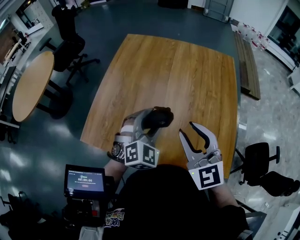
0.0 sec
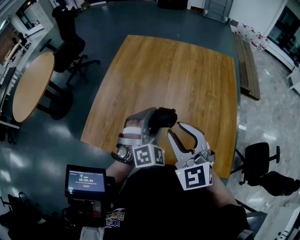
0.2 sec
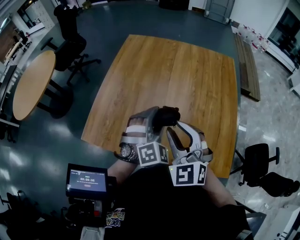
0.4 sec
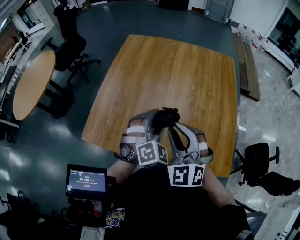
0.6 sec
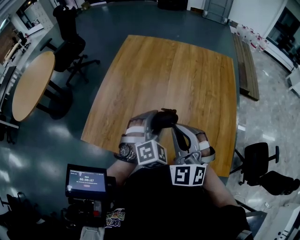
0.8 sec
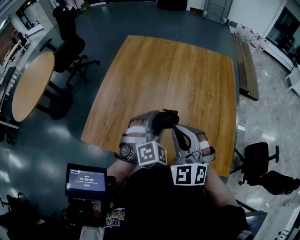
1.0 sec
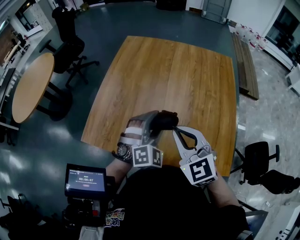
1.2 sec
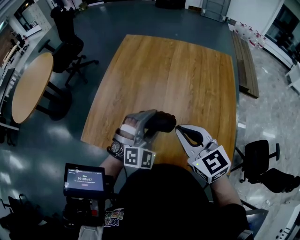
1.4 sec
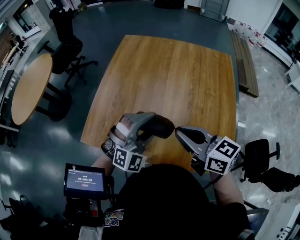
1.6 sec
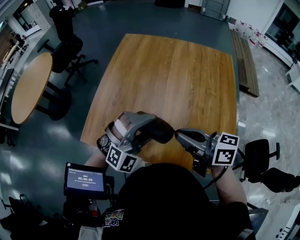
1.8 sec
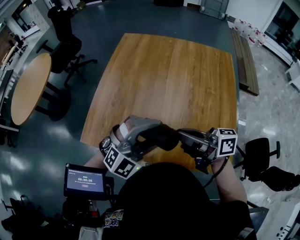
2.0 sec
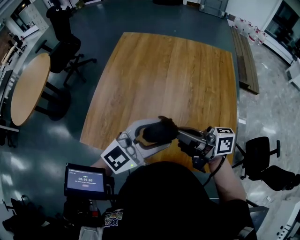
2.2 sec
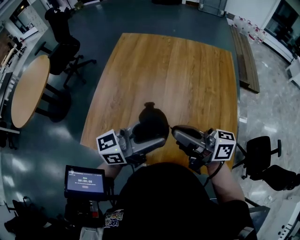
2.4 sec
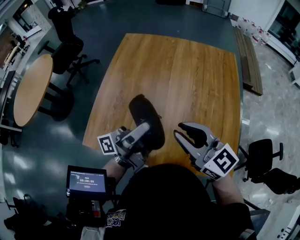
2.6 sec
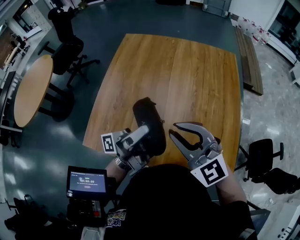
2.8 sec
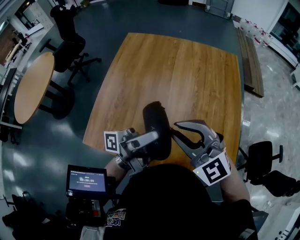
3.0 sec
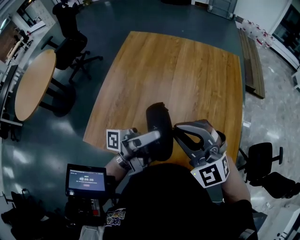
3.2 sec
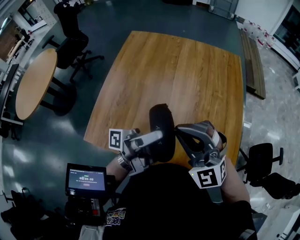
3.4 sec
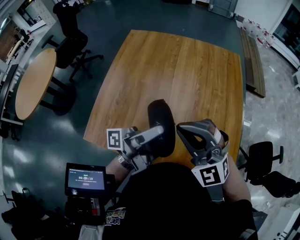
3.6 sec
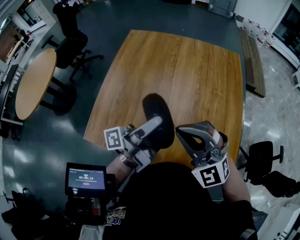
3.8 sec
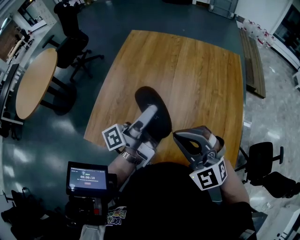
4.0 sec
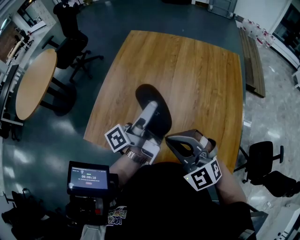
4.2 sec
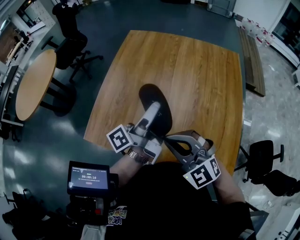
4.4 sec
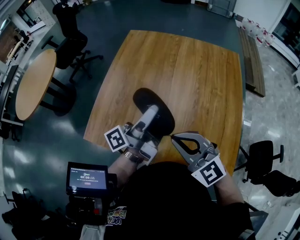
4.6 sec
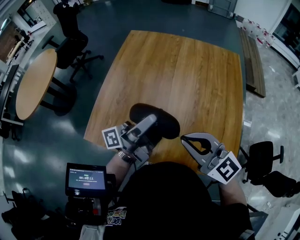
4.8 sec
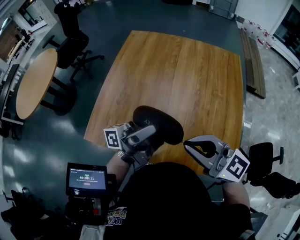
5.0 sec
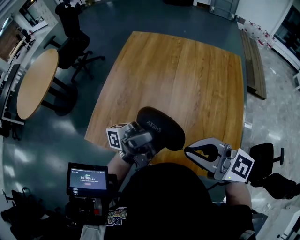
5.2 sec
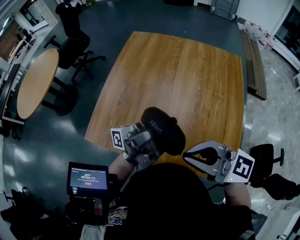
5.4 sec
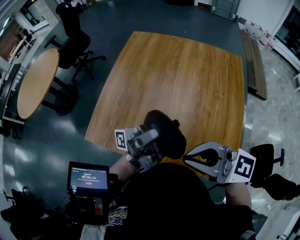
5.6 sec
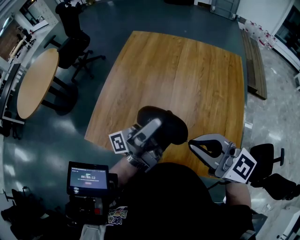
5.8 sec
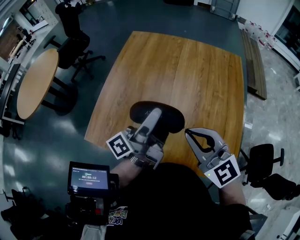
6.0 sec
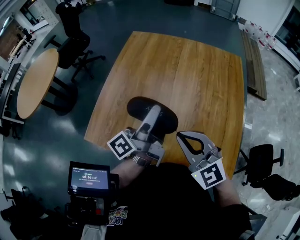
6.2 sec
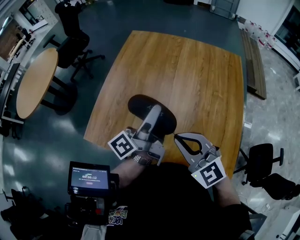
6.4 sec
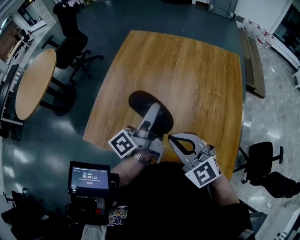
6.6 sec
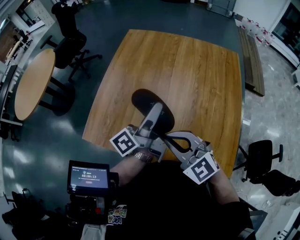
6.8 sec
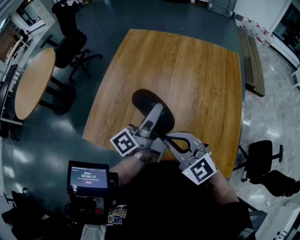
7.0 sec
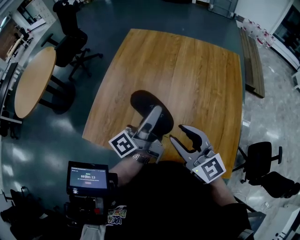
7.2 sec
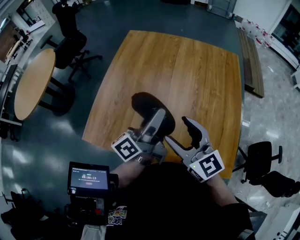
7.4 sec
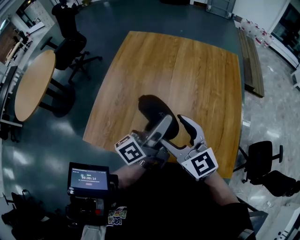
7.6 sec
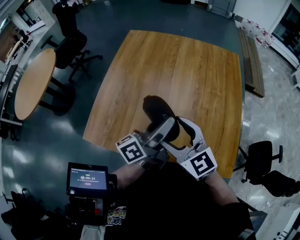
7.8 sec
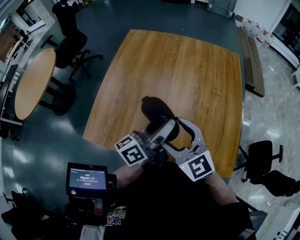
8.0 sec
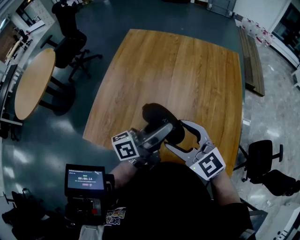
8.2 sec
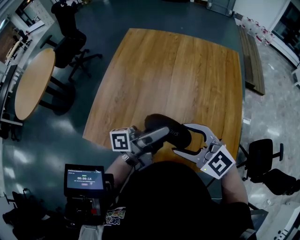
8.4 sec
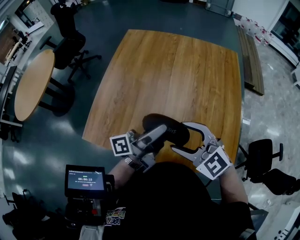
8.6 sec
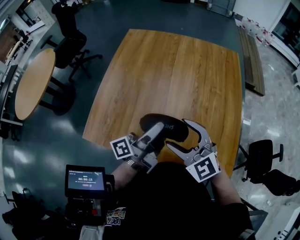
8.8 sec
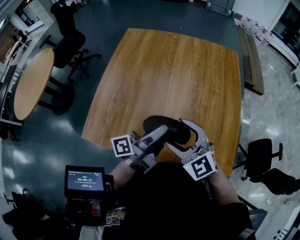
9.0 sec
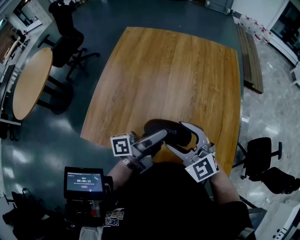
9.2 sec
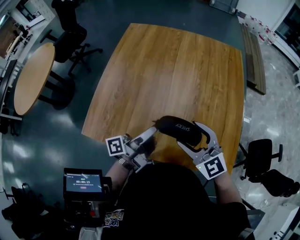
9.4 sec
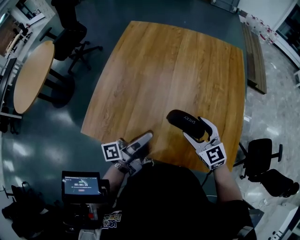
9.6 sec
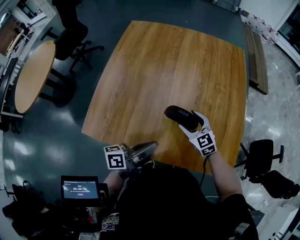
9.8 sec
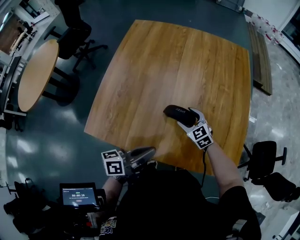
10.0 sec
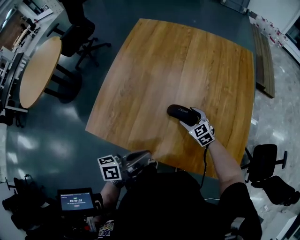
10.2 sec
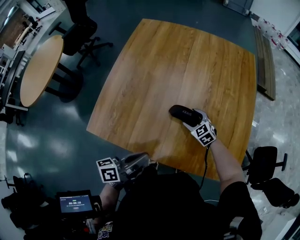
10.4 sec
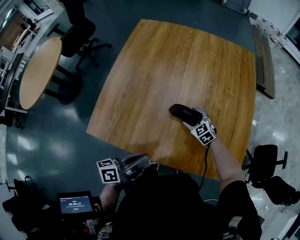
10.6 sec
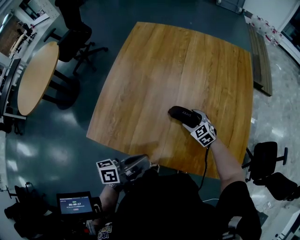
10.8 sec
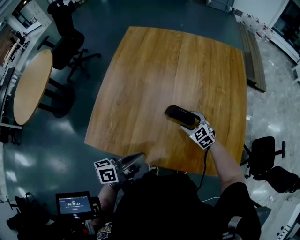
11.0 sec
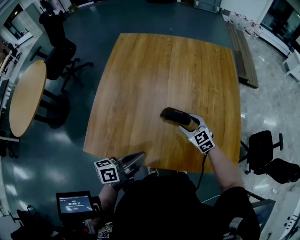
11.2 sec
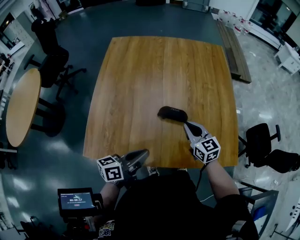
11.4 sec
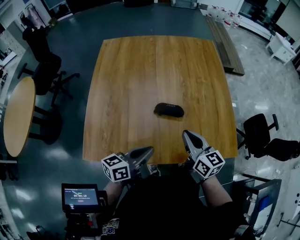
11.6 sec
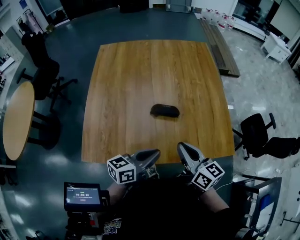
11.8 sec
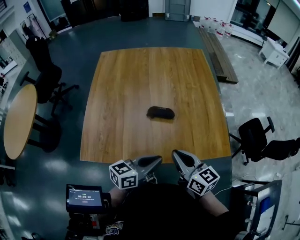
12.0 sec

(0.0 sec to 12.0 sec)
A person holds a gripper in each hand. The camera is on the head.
0.0 sec - 1.6 sec: The left gripper turns by approximately 30 degrees. The right gripper swivels some 50 degrees, and closes.
1.6 sec - 3.0 sec: The left gripper goes about 10 cm upward, and twists approximately 130 degrees counterclockwise, seen from behind; the right gripper rolls counterclockwise, seen from behind, by roughly 60 degrees.
3.0 sec - 4.4 sec: The left gripper goes roughly 5 cm forward, and turns by about 40 degrees. Meanwhile the right gripper travels downward by roughly 5 cm.
4.4 sec - 6.0 sec: The right gripper shifts by some 10 cm, and rotates roughly 20 degrees.
6.0 sec - 7.6 sec: The right gripper moves roughly 5 cm, and opens.
7.6 sec - 9.0 sec: The right gripper shifts by about 5 cm, and turns by some 20 degrees. The left gripper travels downward by some 5 cm, and swivels some 20 degrees.
9.0 sec - 10.4 sec: The left gripper goes approximately 15 cm backward, to the left and downward, turns by roughly 30 degrees, and closes its fingers. Meanwhile the right gripper shifts about 30 cm downward and forward, and changes its angle by roughly 30 degrees.
10.4 sec - 12.0 sec: The right gripper heads upward and backward, covering roughly 30 cm, tips its fingers upward by approximately 30 degrees, and closes. Meanwhile the left gripper travels to the right by about 5 cm, and rotates some 40 degrees.

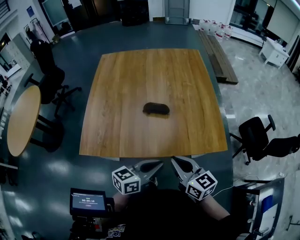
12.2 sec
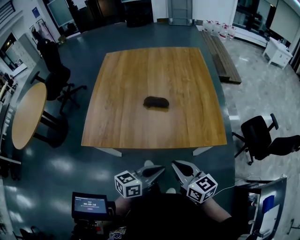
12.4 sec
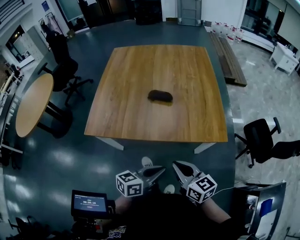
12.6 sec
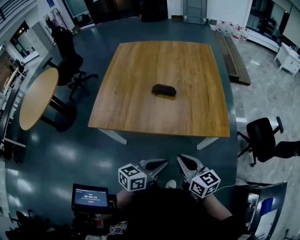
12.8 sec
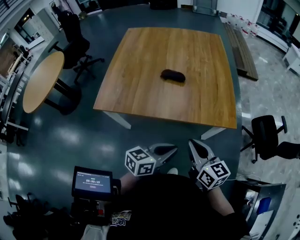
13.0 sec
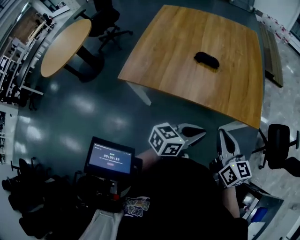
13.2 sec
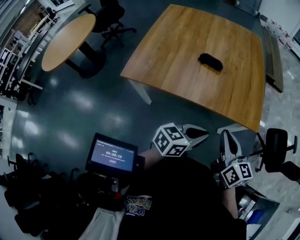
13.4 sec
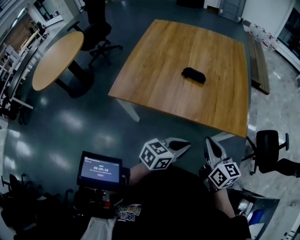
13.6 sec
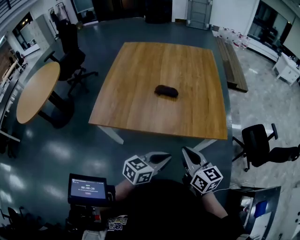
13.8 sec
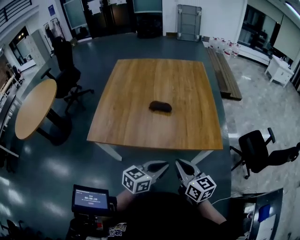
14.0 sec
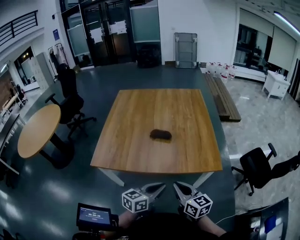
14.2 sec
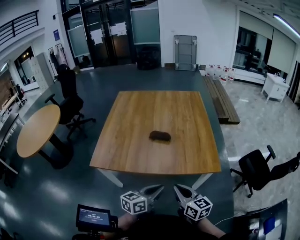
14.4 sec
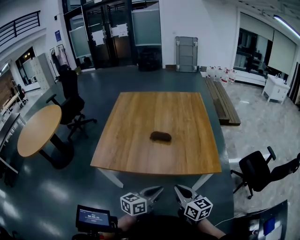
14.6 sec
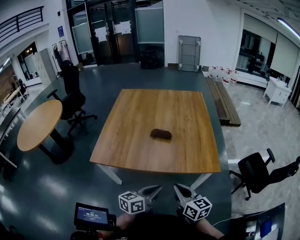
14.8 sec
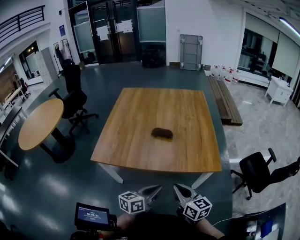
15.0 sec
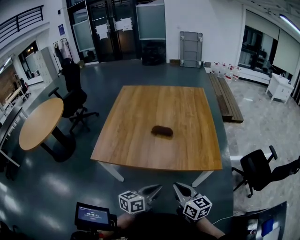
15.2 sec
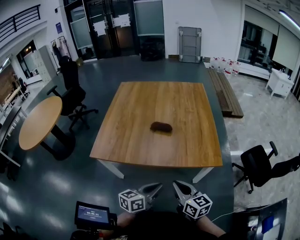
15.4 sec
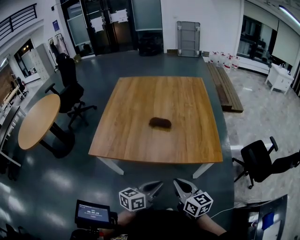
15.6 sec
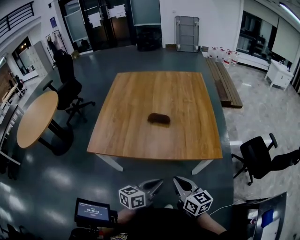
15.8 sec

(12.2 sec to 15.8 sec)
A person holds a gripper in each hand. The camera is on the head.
12.2 sec - 14.0 sec: The two grippers go about 10 cm backward and to the right.
14.0 sec - 15.8 sec: The grippers stay close to where they were, moving slightly.

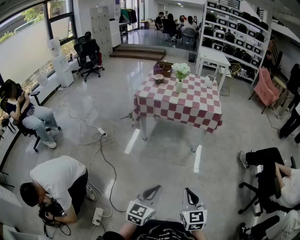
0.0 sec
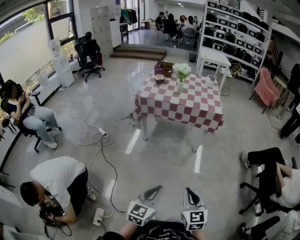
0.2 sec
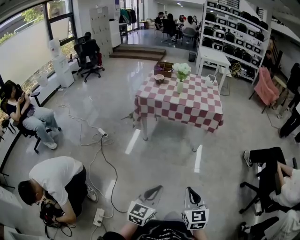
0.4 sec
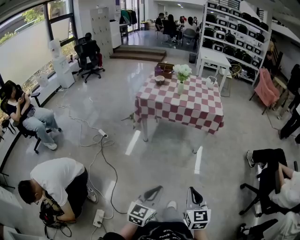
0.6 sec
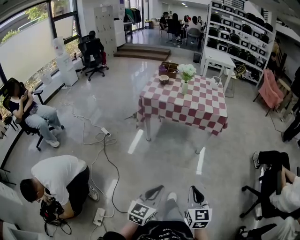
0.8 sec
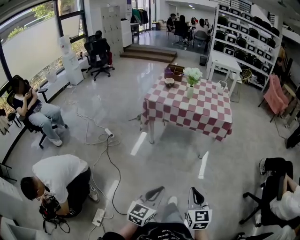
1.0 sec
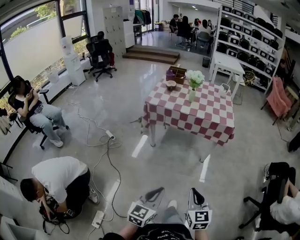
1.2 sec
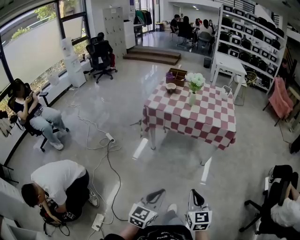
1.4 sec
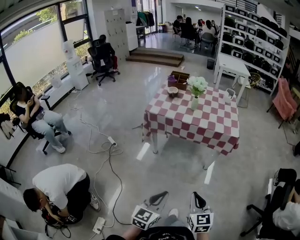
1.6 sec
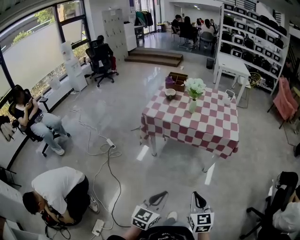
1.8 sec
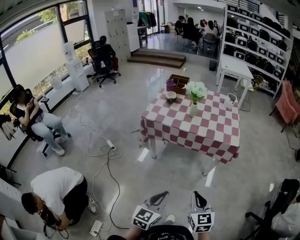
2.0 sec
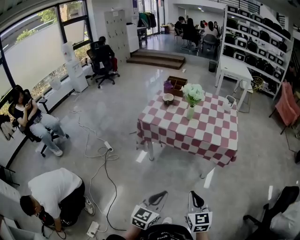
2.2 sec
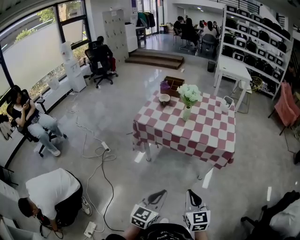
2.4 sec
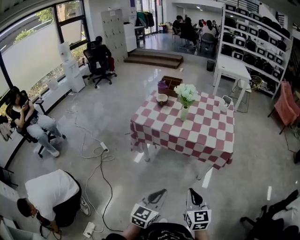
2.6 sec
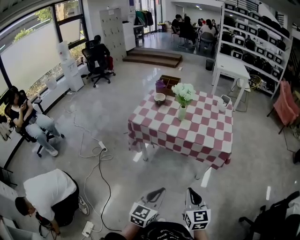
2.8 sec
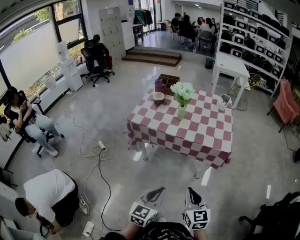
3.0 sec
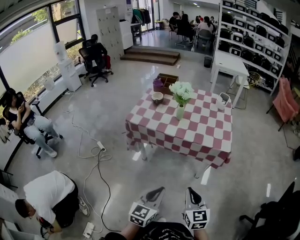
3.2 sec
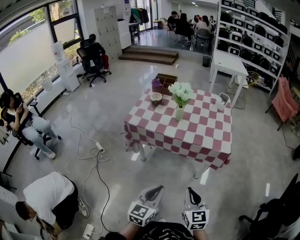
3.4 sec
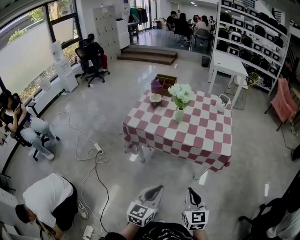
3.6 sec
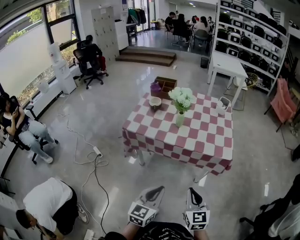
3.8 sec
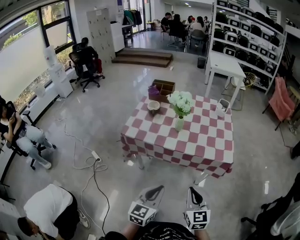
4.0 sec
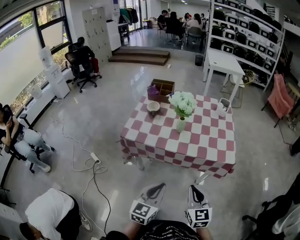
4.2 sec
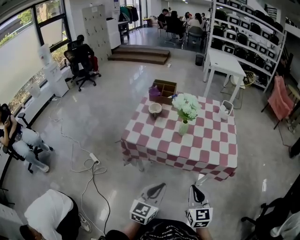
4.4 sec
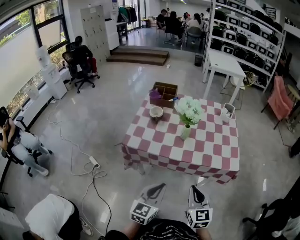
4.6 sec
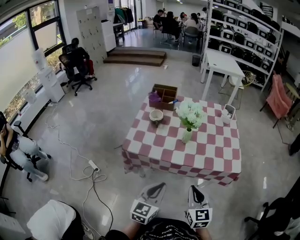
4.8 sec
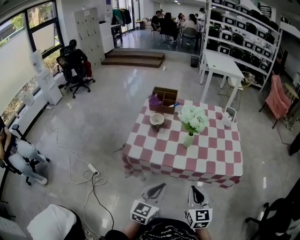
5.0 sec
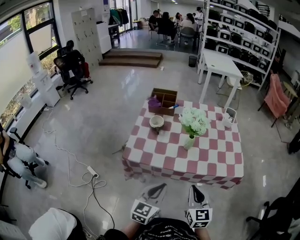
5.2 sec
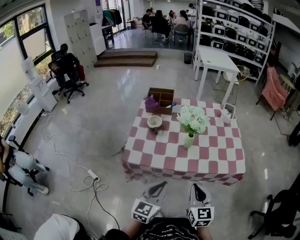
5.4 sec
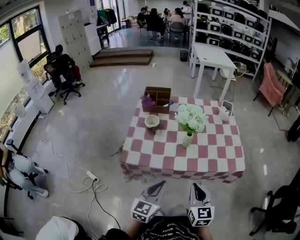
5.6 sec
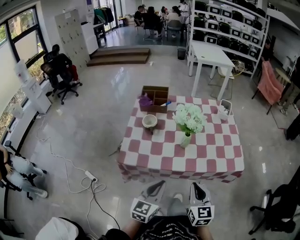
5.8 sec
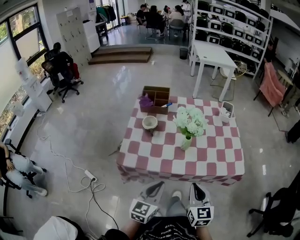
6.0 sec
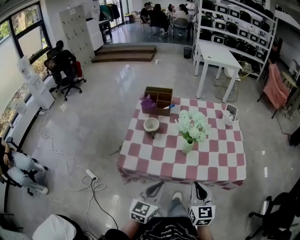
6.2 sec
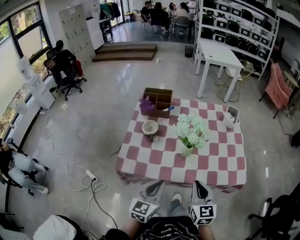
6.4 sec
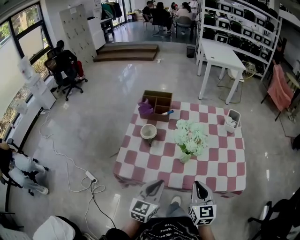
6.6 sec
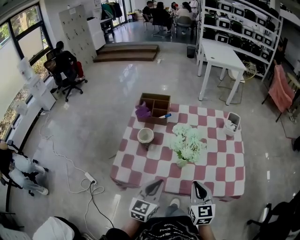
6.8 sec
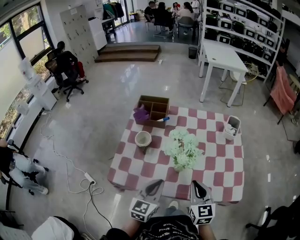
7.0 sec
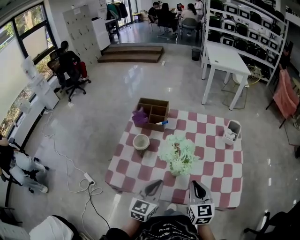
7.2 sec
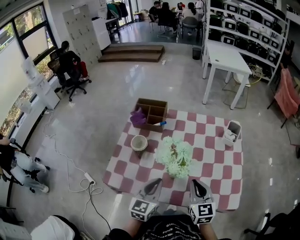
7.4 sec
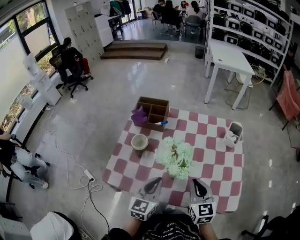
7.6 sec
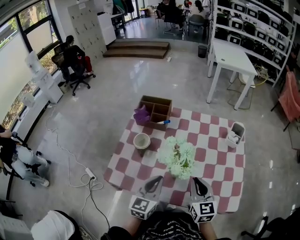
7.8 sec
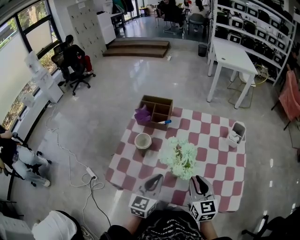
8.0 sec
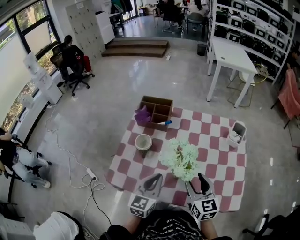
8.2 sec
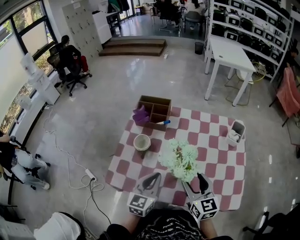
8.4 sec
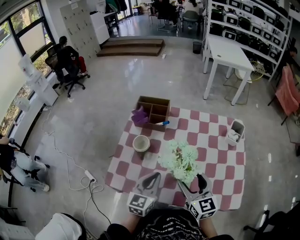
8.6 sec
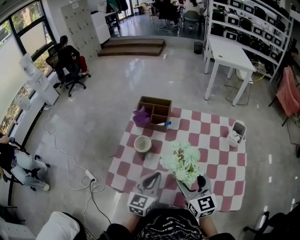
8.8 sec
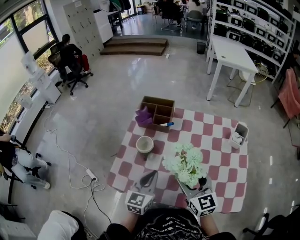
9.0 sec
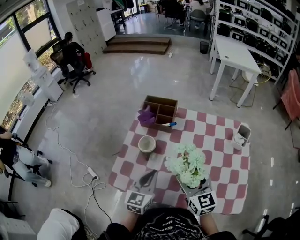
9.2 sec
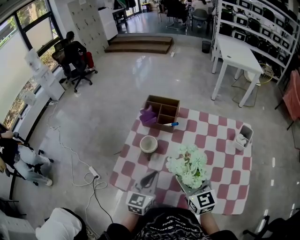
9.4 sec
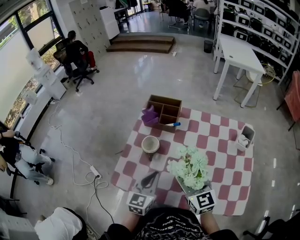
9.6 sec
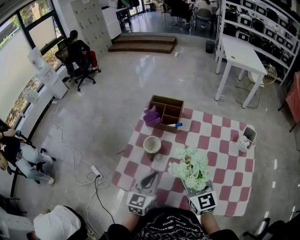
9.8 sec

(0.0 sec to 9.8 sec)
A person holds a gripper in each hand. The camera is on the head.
0.0 sec - 1.4 sec: The two grippers go some 10 cm forward.
1.4 sec - 2.8 sec: The right gripper goes roughly 20 cm forward; the left gripper goes about 20 cm forward and to the right.
2.8 sec - 4.2 sec: Both grippers move forward, roughly 15 cm.
4.2 sec - 5.6 sec: The two grippers go about 15 cm forward and to the left.
5.6 sec - 7.0 sec: The grippers both shift forward by some 15 cm.
7.0 sec - 8.4 sec: The grippers both shift forward by about 5 cm. The right gripper opens its fingers.
8.4 sec - 9.8 sec: The right gripper moves to the left and forward, approximately 10 cm; the left gripper moves to the left, approximately 5 cm.
